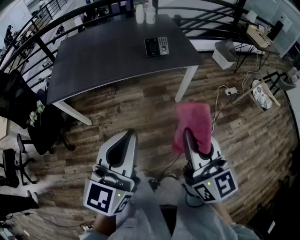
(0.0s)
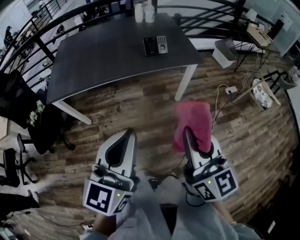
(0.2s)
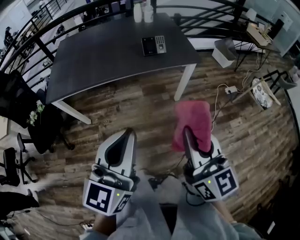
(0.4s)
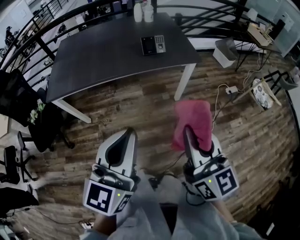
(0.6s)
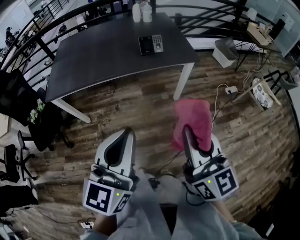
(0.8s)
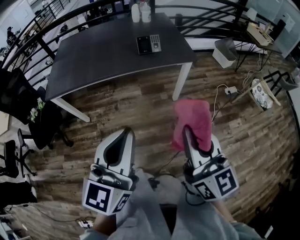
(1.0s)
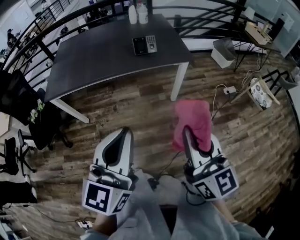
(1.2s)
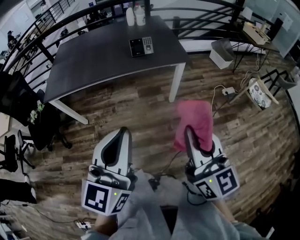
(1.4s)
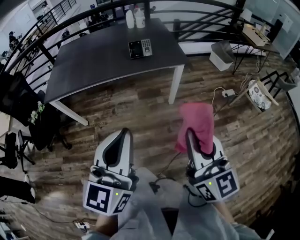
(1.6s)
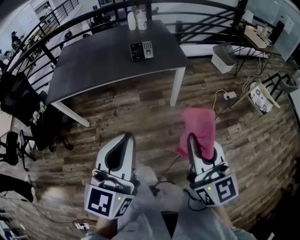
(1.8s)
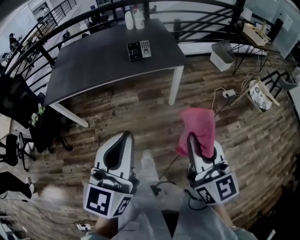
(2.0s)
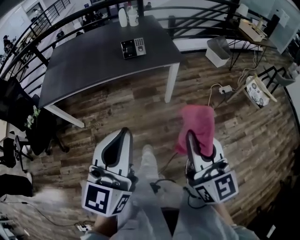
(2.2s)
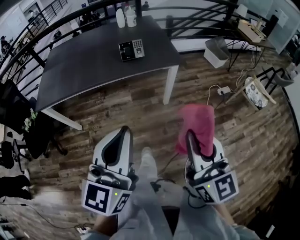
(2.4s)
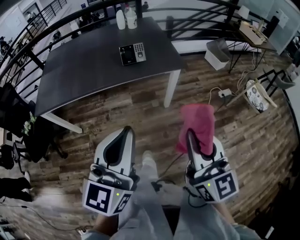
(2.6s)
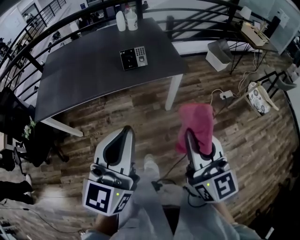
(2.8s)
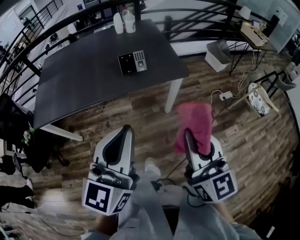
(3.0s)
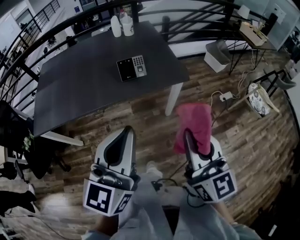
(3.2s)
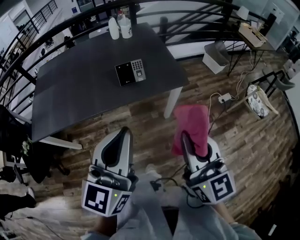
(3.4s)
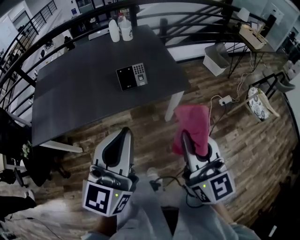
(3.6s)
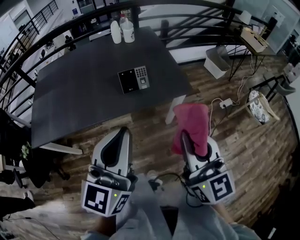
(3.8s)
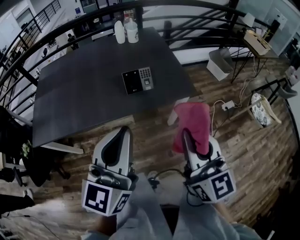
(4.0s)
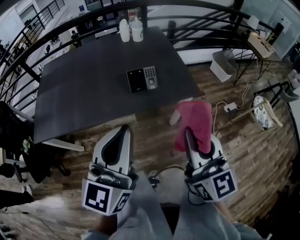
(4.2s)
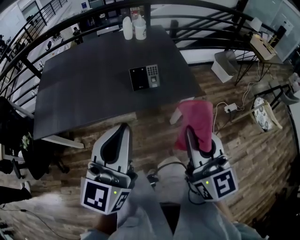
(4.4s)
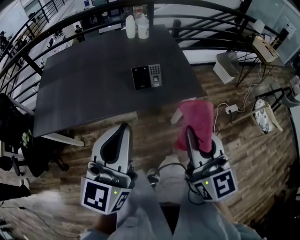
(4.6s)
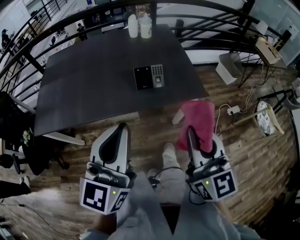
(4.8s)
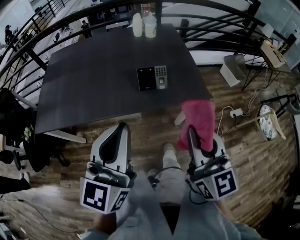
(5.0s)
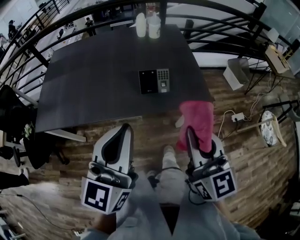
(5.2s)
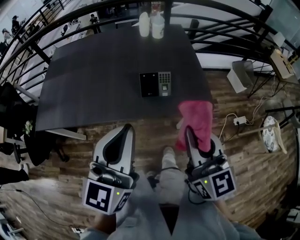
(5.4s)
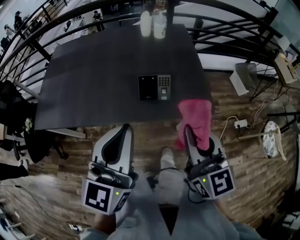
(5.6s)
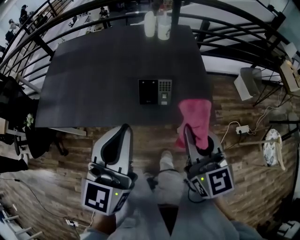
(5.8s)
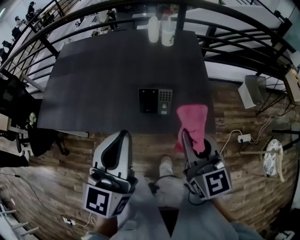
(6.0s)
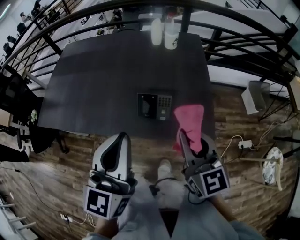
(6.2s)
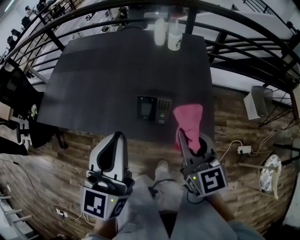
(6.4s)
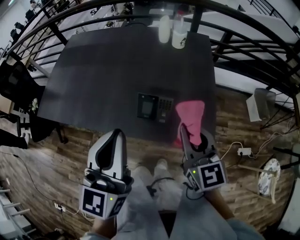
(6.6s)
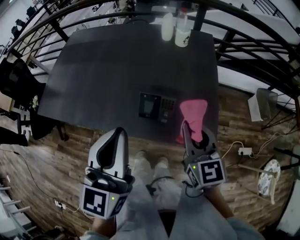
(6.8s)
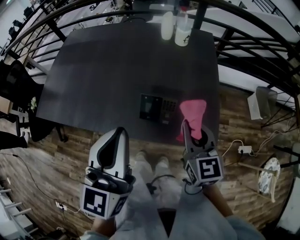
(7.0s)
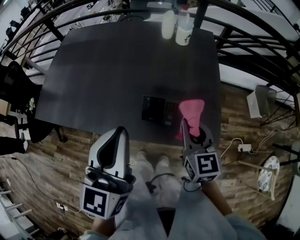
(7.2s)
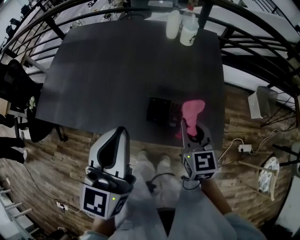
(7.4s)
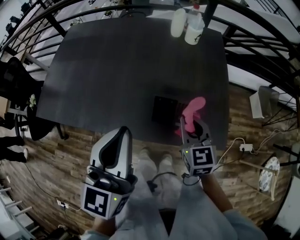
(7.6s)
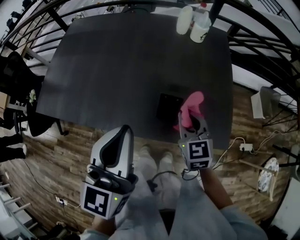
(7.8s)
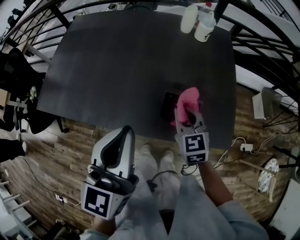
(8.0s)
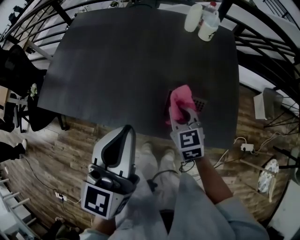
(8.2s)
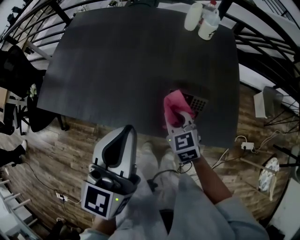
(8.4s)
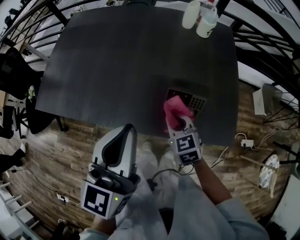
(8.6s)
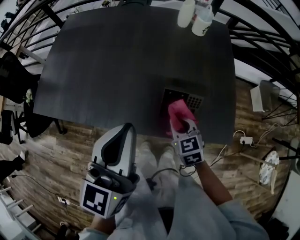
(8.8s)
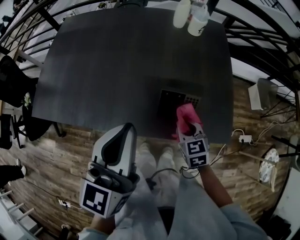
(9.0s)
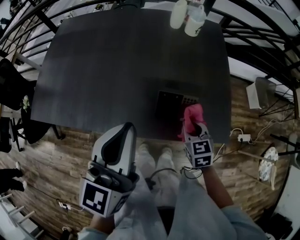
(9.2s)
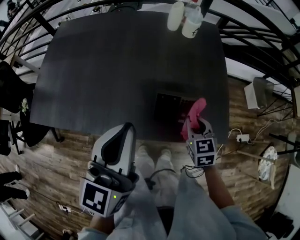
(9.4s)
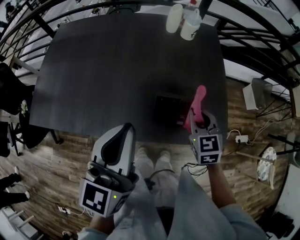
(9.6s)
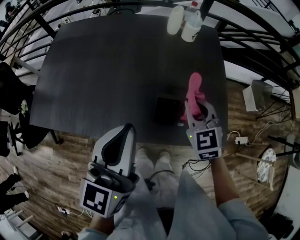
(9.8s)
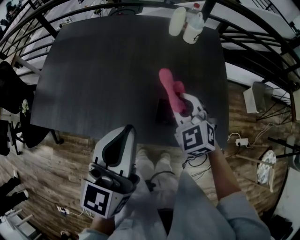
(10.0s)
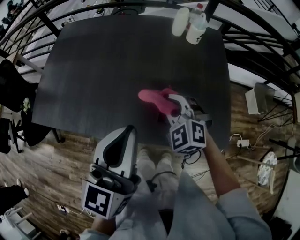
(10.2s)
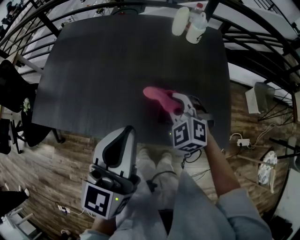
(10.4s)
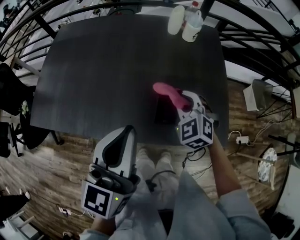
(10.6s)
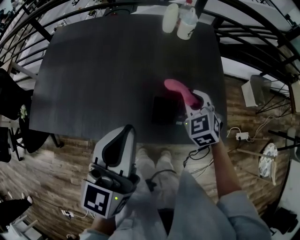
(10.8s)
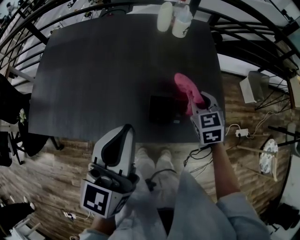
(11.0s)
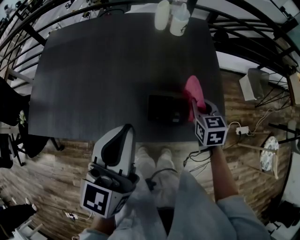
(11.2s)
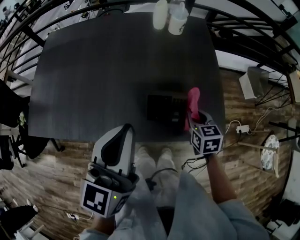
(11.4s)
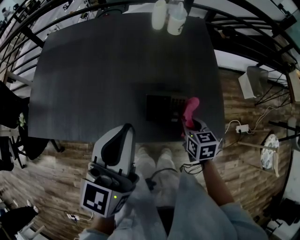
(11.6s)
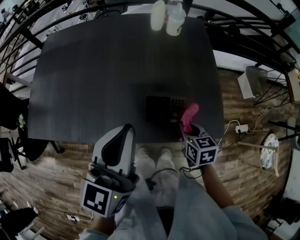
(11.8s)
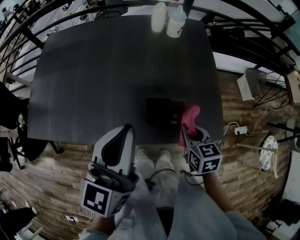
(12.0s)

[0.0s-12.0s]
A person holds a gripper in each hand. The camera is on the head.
0.0s to 1.6s: The two grippers go approximately 15 cm to the right.
1.6s to 3.0s: Both grippers travel together forward, some 20 cm.
3.0s to 4.4s: The two grippers go some 15 cm forward and to the left.
4.4s to 6.0s: The grippers both shift forward by some 15 cm.
6.0s to 7.6s: The right gripper heads forward and downward, covering some 20 cm. Meanwhile the left gripper goes approximately 10 cm forward.
7.6s to 9.0s: The right gripper heads downward, covering about 10 cm, and goes to the left and returns, some 10 cm each way.
9.0s to 10.4s: The right gripper is displaced upward, forward and to the left by approximately 15 cm, and rotates around the line of its fingers by some 40 degrees, counterclockwise from behind.
10.4s to 12.0s: The right gripper goes approximately 15 cm to the right and backward, and rolls clockwise, seen from behind, by approximately 60 degrees.

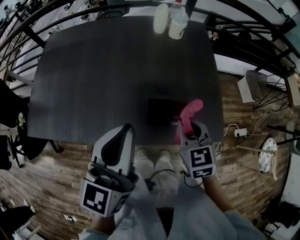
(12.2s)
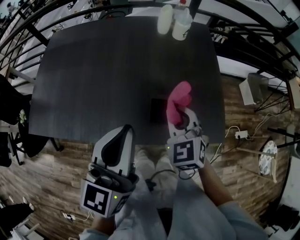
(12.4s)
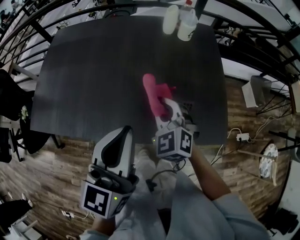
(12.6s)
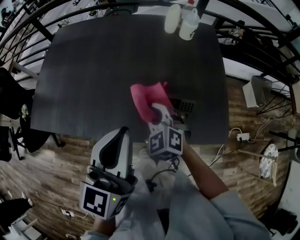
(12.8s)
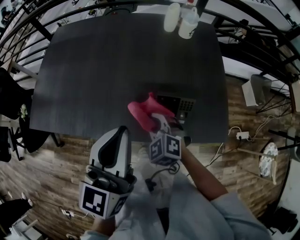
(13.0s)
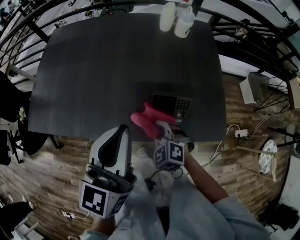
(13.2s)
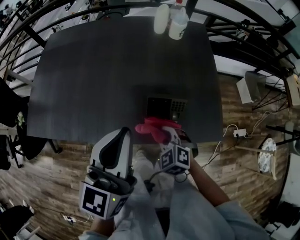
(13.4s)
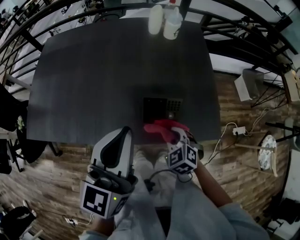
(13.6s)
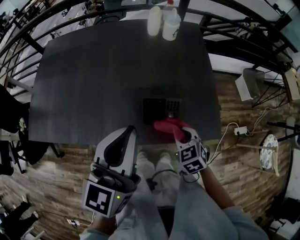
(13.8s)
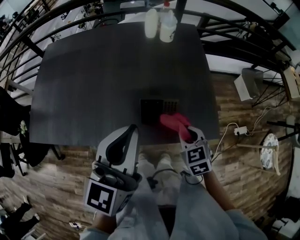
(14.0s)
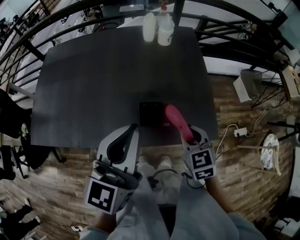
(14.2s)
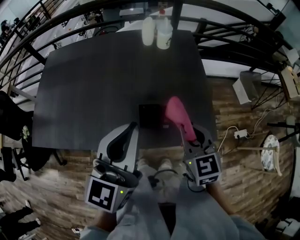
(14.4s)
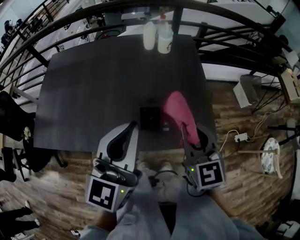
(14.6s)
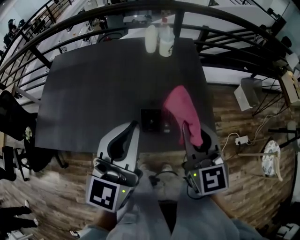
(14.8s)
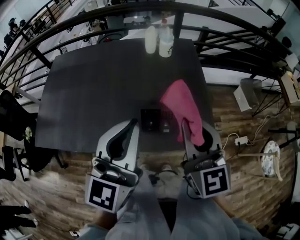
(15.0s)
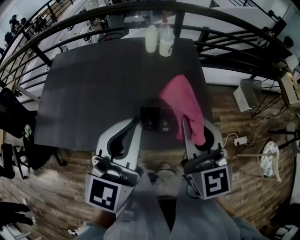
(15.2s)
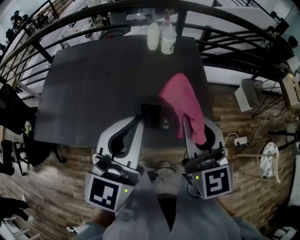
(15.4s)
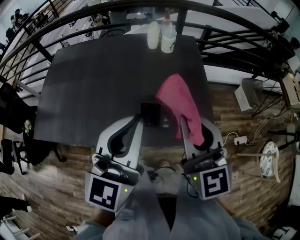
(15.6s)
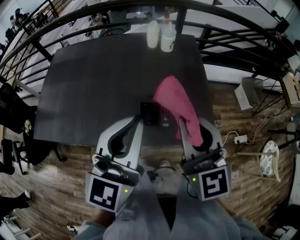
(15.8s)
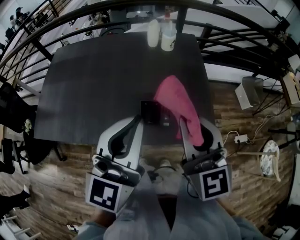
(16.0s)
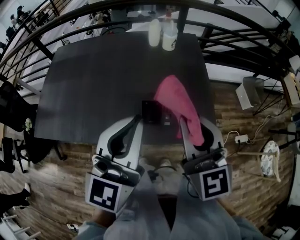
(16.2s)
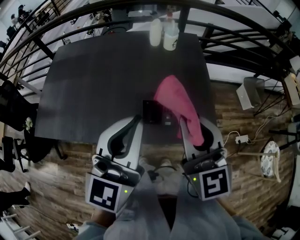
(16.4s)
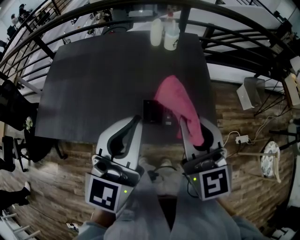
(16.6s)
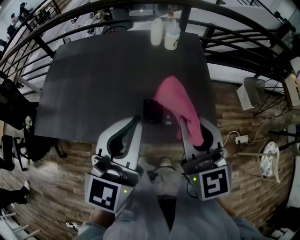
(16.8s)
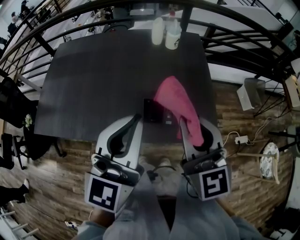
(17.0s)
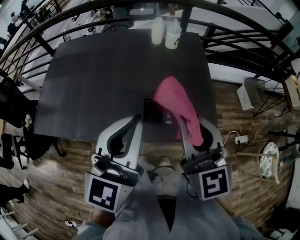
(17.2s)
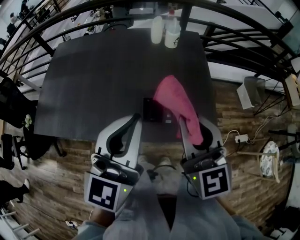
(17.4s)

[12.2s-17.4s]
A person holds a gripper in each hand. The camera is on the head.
12.2s to 14.0s: The right gripper travels downward by roughly 5 cm, and moves about 15 cm to the left and comes back.
14.0s to 15.6s: The left gripper shifts some 5 cm upward; the right gripper goes roughly 25 cm upward, and angles its fingers upward, by about 40 degrees.
15.6s to 17.4s: The grippers make only small movements.

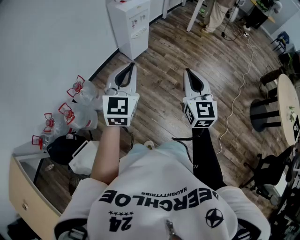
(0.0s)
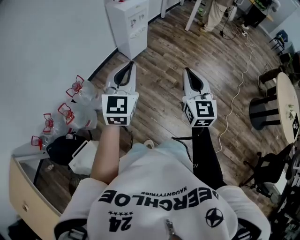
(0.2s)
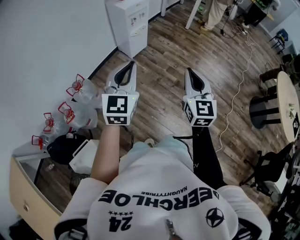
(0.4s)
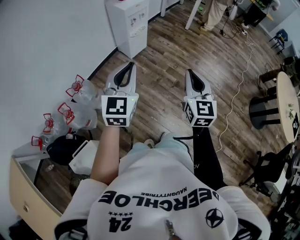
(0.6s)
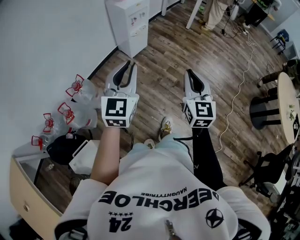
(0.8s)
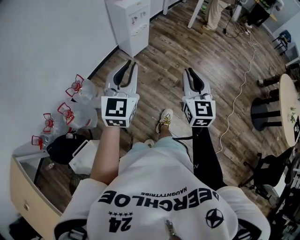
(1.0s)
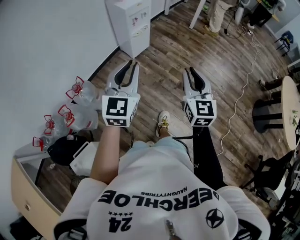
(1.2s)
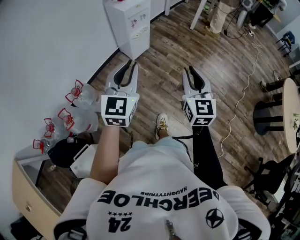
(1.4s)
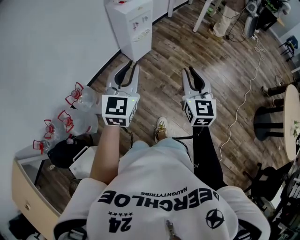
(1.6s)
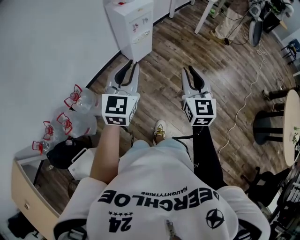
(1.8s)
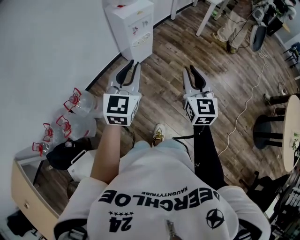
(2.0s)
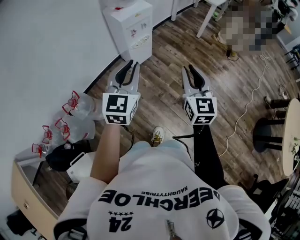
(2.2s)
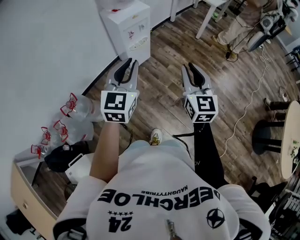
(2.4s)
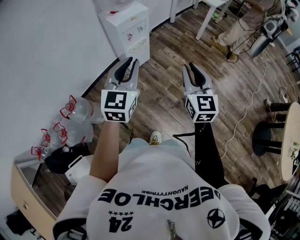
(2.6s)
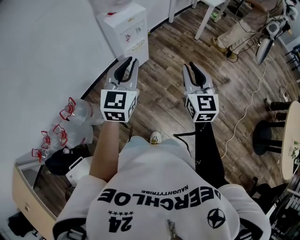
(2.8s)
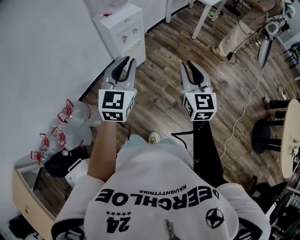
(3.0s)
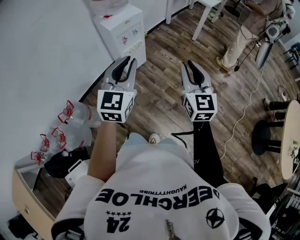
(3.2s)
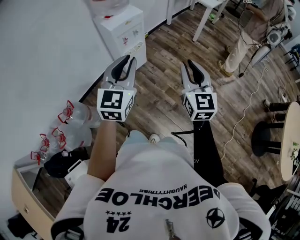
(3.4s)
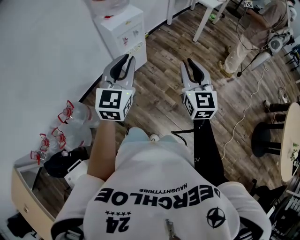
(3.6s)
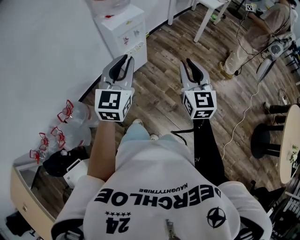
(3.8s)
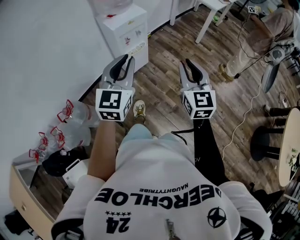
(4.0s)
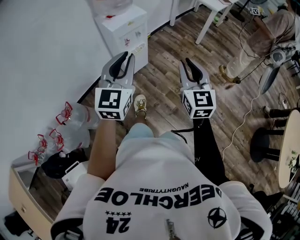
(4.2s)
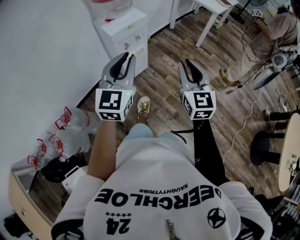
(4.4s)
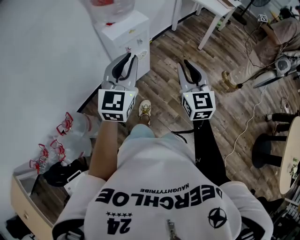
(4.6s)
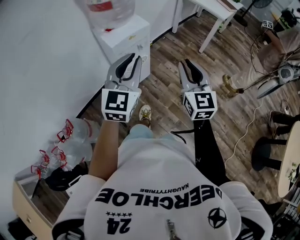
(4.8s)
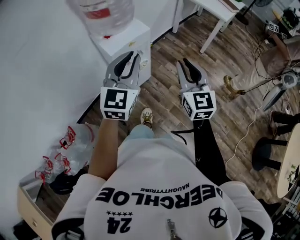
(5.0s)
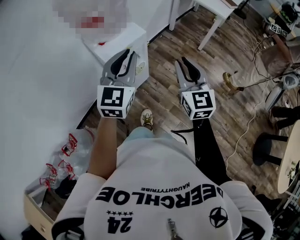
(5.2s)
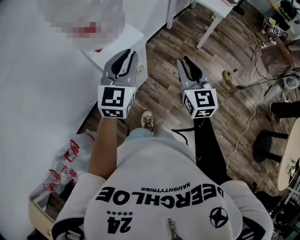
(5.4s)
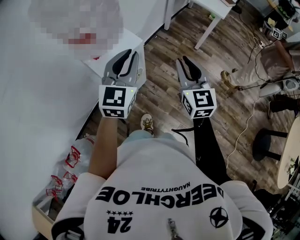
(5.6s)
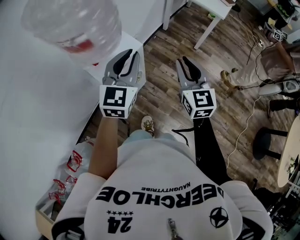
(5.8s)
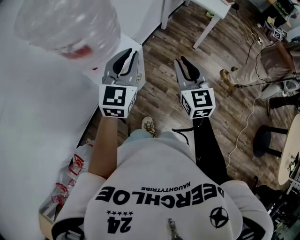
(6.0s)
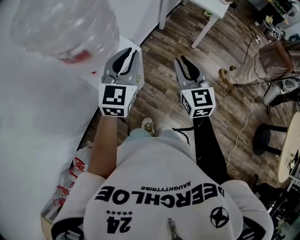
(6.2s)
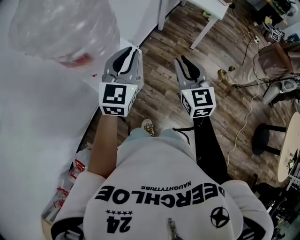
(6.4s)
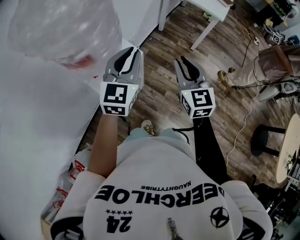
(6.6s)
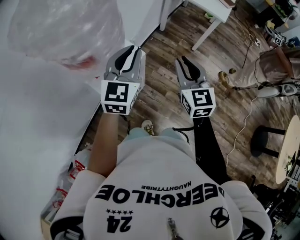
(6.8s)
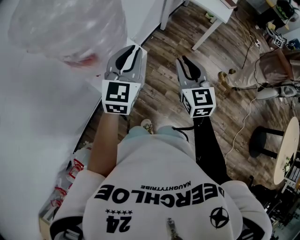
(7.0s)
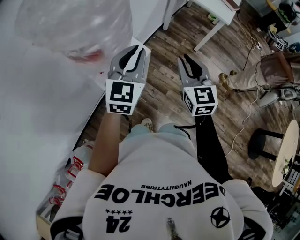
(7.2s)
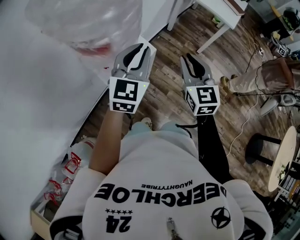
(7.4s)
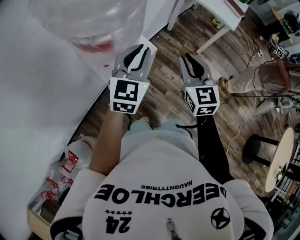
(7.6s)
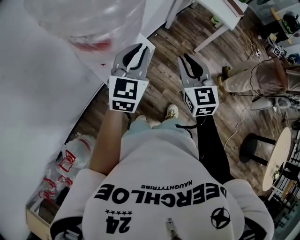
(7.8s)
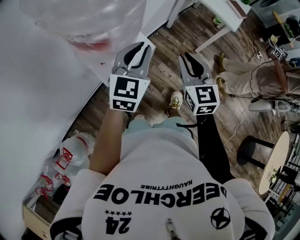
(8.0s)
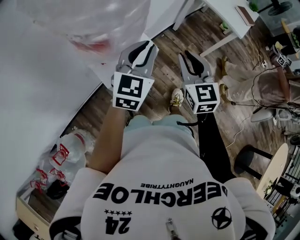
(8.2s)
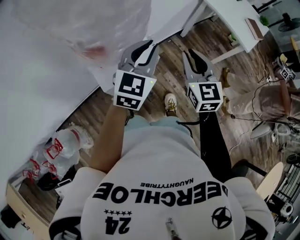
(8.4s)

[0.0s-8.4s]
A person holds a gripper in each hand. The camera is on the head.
0.0s to 1.4s: Both grippers move forward, roughly 10 cm.
1.4s to 2.8s: The two grippers go approximately 25 cm forward and to the right.
2.8s to 4.2s: The two grippers go approximately 5 cm forward.
4.2s to 5.6s: The grippers both shift forward by about 35 cm.
5.6s to 7.0s: The two grippers go about 10 cm forward.
7.0s to 8.4s: The right gripper heads forward, covering about 10 cm; the left gripper heads forward, covering some 5 cm.
